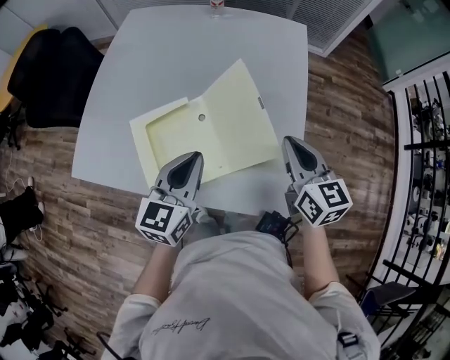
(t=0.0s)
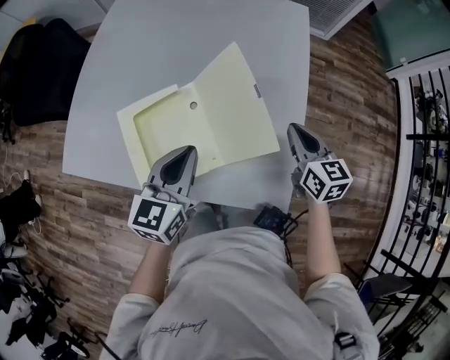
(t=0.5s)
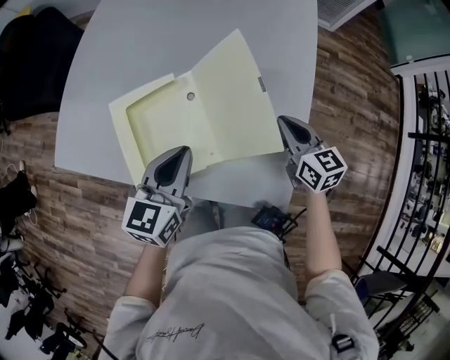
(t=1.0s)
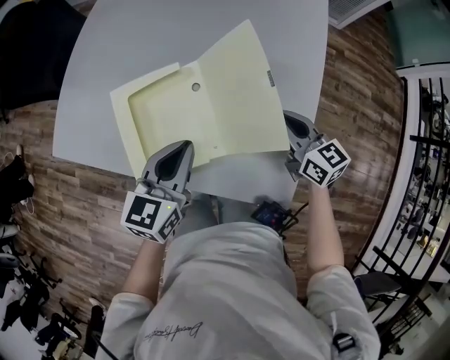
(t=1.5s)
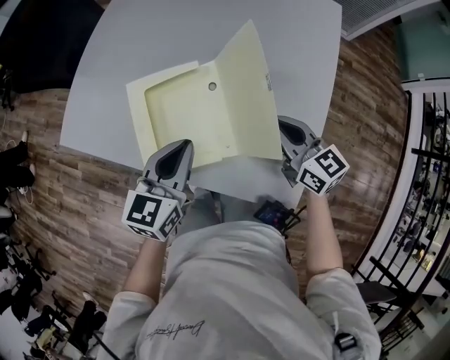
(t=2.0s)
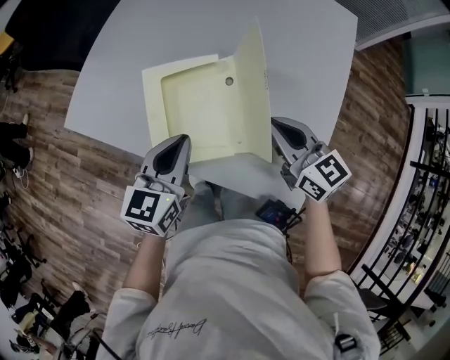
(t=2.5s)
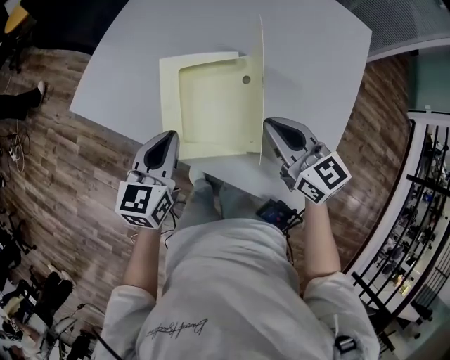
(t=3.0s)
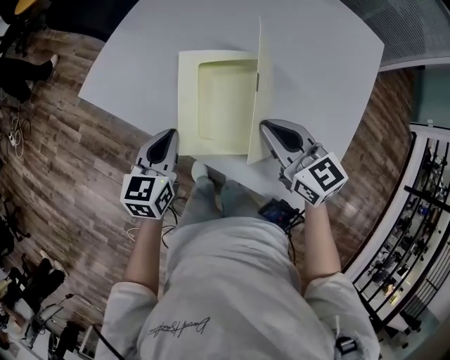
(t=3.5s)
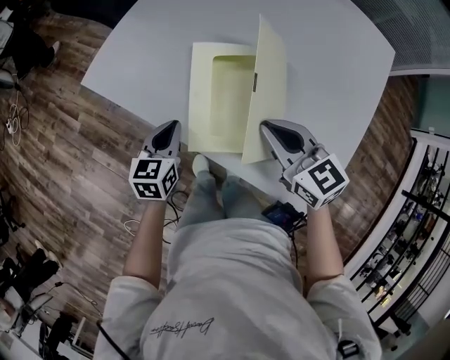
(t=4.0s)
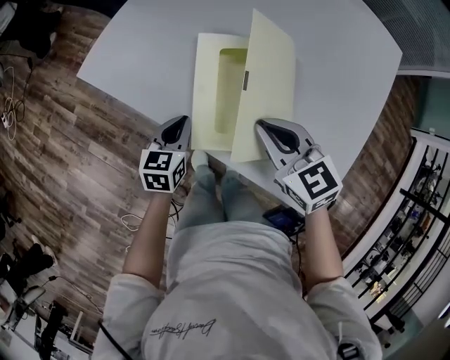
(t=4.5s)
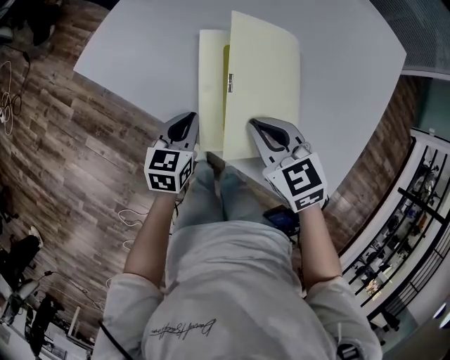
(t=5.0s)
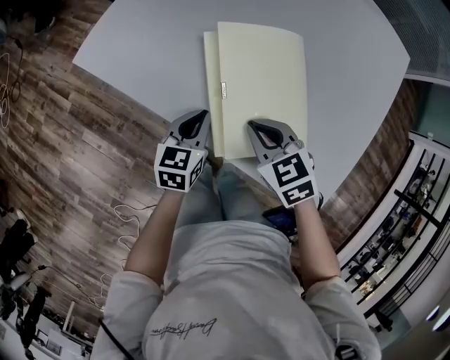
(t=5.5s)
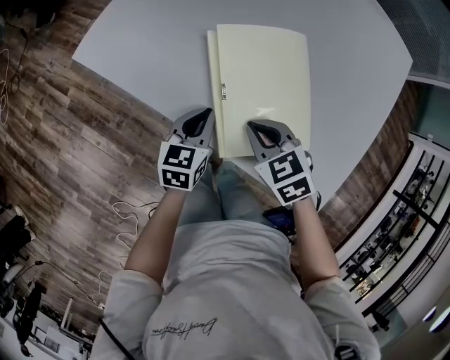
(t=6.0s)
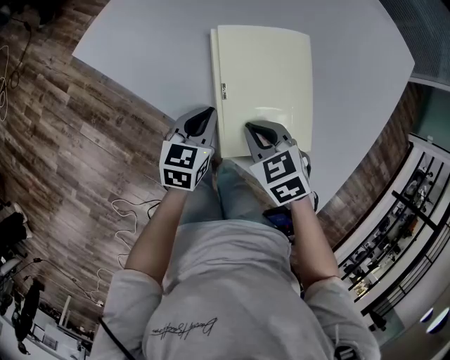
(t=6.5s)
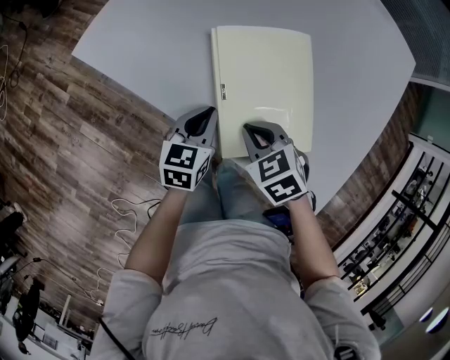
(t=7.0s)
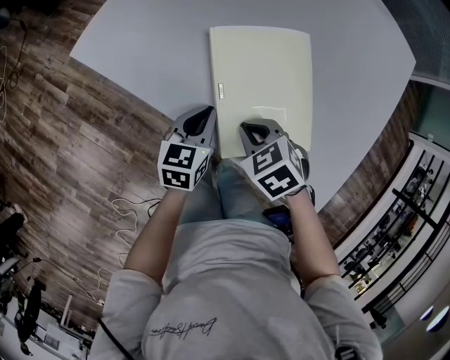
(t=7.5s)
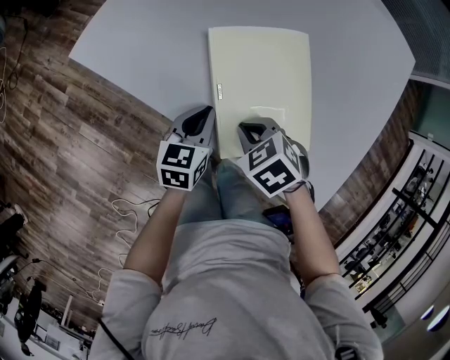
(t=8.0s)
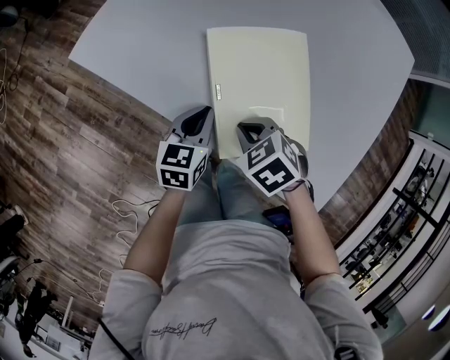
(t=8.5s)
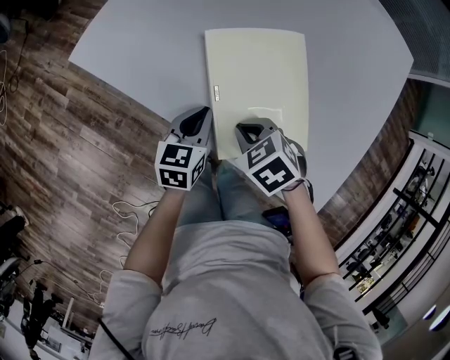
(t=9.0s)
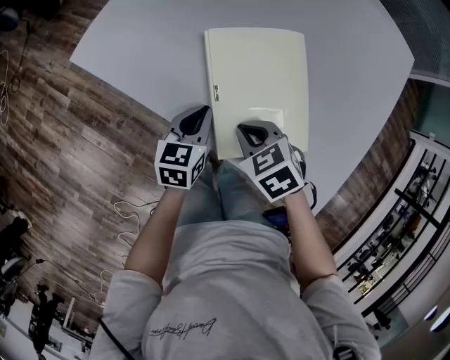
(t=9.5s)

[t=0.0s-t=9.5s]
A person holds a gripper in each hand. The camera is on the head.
t=0.0s to t=2.0s: The right gripper goes some 10 cm downward and to the left, and turns by approximately 30 degrees. The left gripper is displaced downward by some 5 cm.
t=2.0s to t=4.0s: The left gripper shifts approximately 20 cm to the left and downward, and swivels approximately 20 degrees; the right gripper heads to the left, covering some 15 cm, and turns by approximately 20 degrees.
t=4.0s to t=5.5s: The right gripper moves downward, some 10 cm, and rotates some 30 degrees, while the left gripper moves to the right, some 5 cm.
t=5.5s to t=7.5s: The right gripper ends up roughly 5 cm from where it was.
t=7.5s to t=9.5s: The grippers make only small movements.

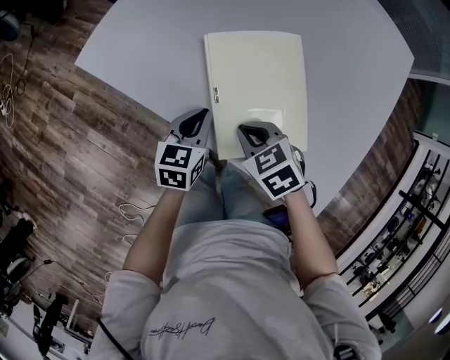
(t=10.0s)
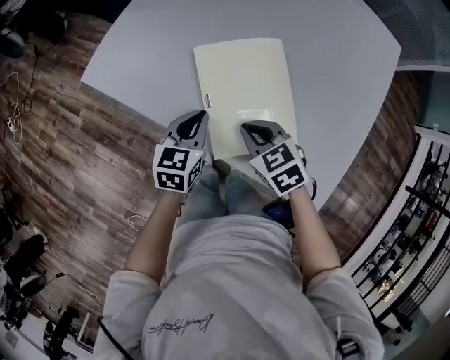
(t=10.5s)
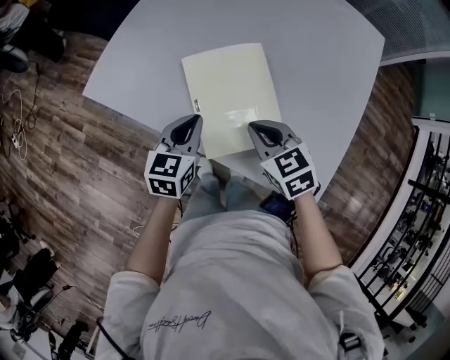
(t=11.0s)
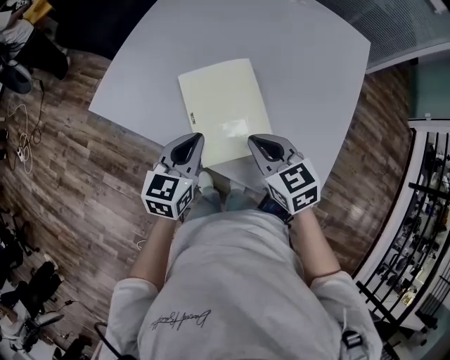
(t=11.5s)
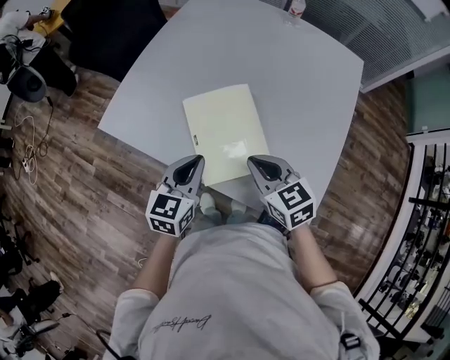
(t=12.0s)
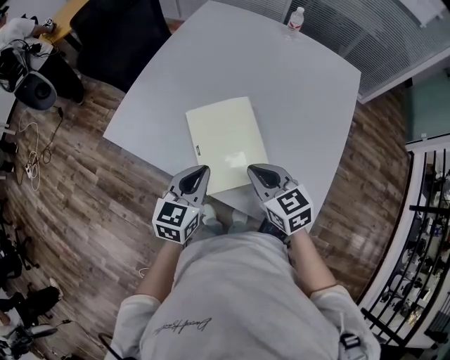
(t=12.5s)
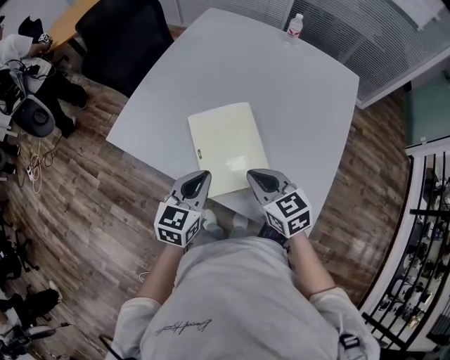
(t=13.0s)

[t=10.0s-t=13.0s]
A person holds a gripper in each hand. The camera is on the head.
t=10.0s to t=11.5s: The left gripper shifts about 15 cm upward; the right gripper shifts about 15 cm upward and to the right, and rotates approximately 30 degrees.
t=11.5s to t=13.0s: The grippers stay close to where they were, moving slightly.

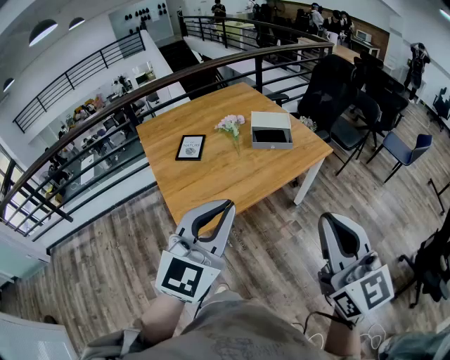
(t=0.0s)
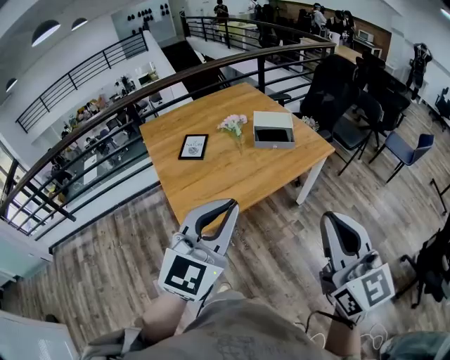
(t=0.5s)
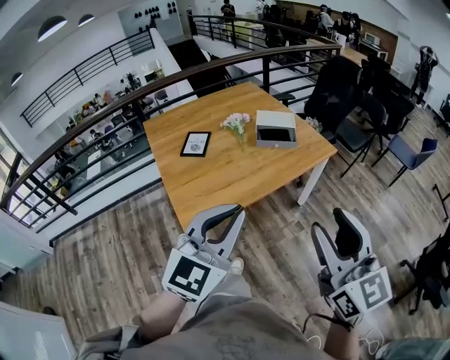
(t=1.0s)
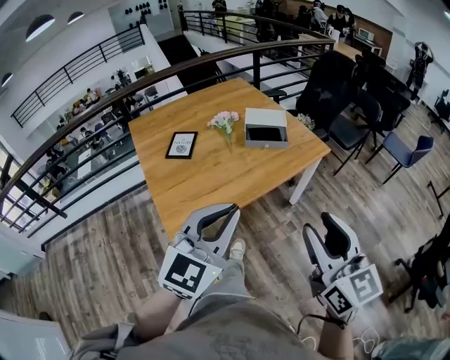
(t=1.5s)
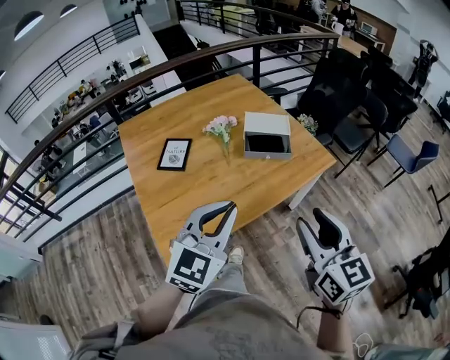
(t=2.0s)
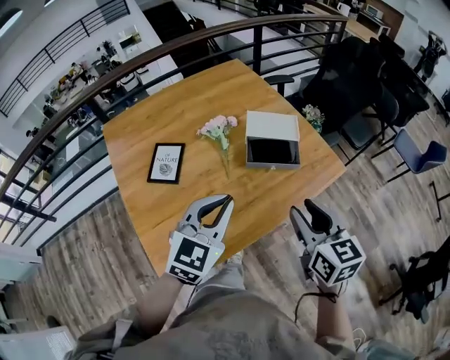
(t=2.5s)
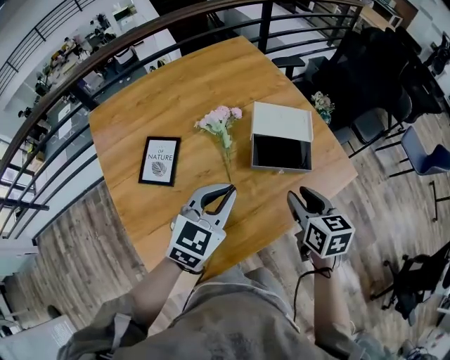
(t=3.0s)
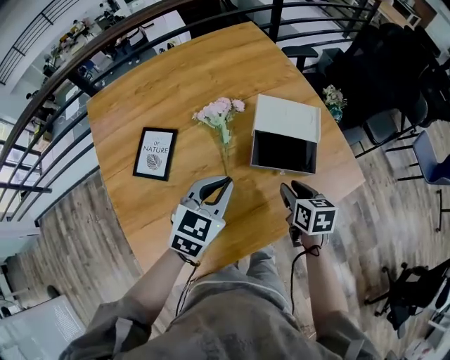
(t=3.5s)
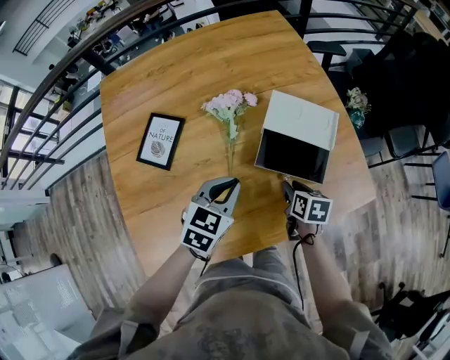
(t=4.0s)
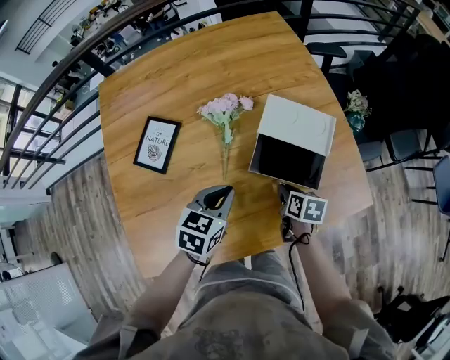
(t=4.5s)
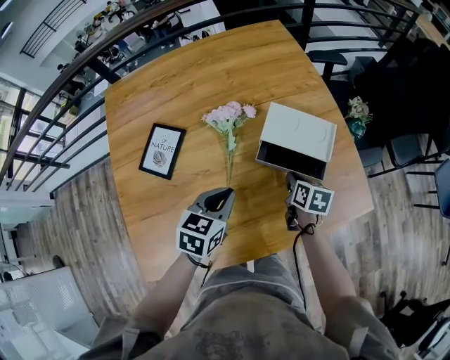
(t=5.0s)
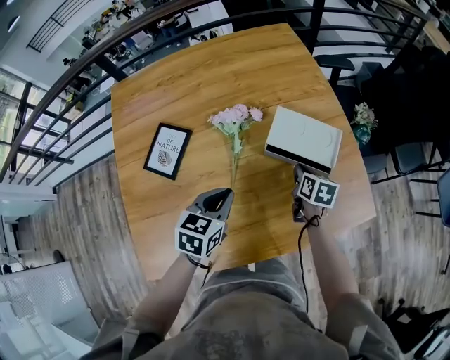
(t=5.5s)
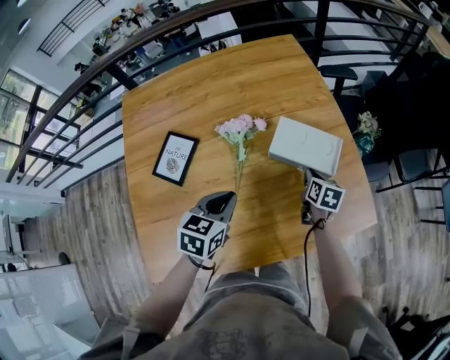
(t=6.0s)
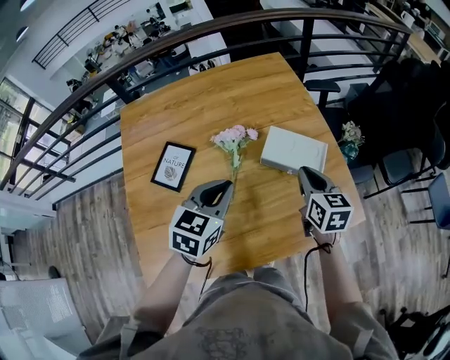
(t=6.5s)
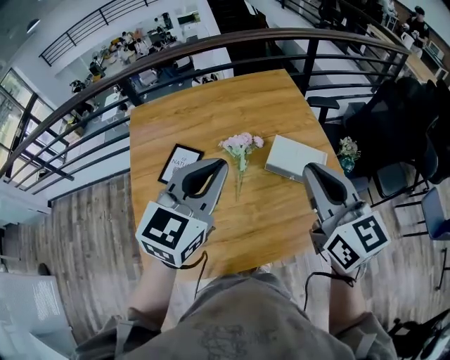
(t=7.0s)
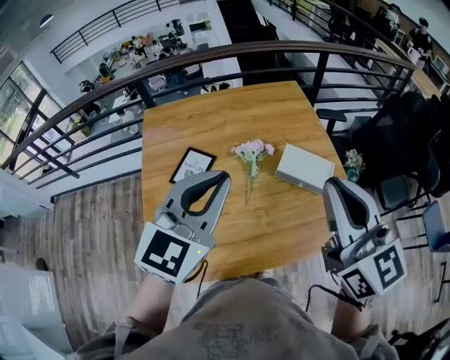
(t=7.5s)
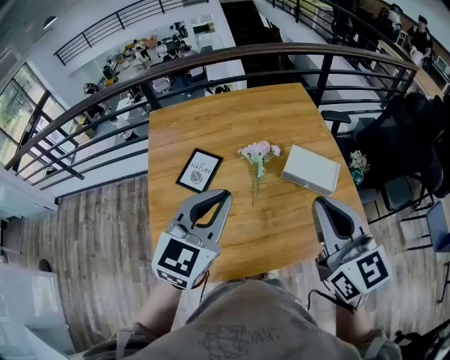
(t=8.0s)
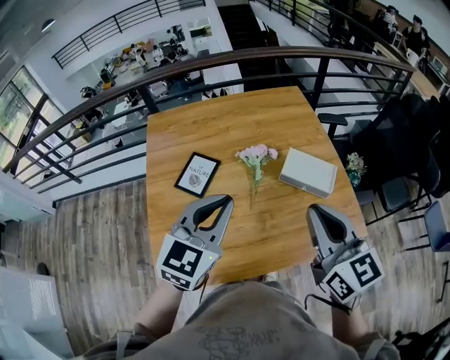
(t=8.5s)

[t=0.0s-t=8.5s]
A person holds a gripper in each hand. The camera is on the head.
t=0.0s to t=2.0s: The two grippers go roughly 20 cm forward and downward. The right gripper opens.
t=2.0s to t=4.0s: The right gripper goes some 50 cm downward and forward, and angles its fingers downward, by approximately 40 degrees, while the left gripper is displaced forward and downward by about 40 cm, and swivels approximately 40 degrees.
t=4.0s to t=6.5s: The right gripper moves upward and forward, some 20 cm, rotates about 30 degrees, and closes up; the left gripper goes about 10 cm upward.
t=6.5s to t=8.5s: The left gripper is displaced upward, backward and to the left by about 15 cm, while the right gripper heads upward, backward and to the left, covering approximately 25 cm, and swivels approximately 30 degrees.

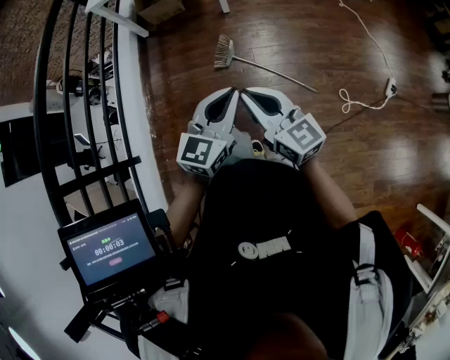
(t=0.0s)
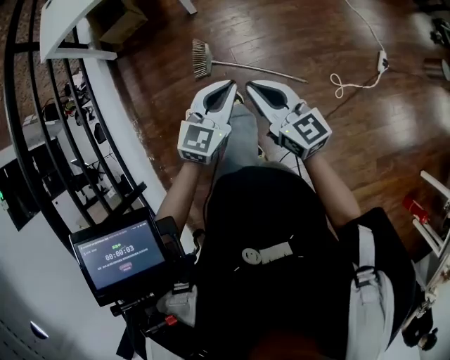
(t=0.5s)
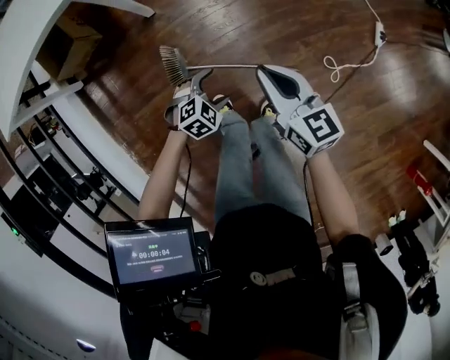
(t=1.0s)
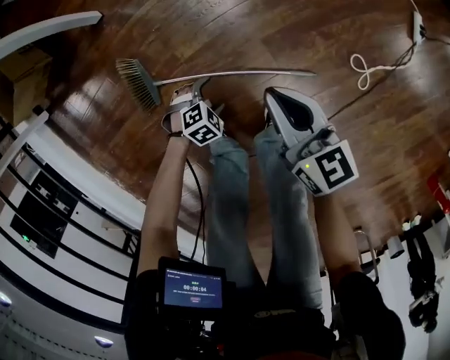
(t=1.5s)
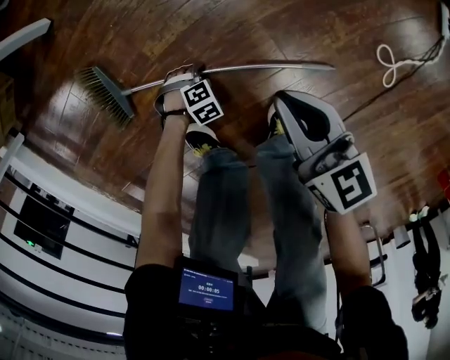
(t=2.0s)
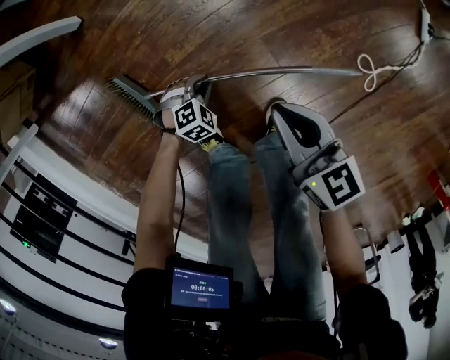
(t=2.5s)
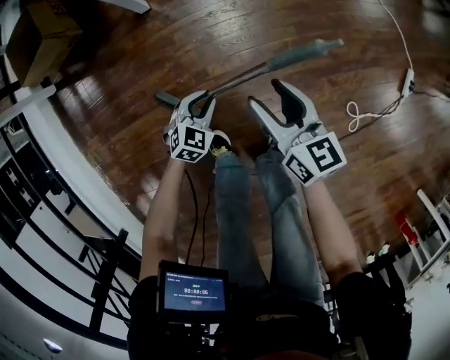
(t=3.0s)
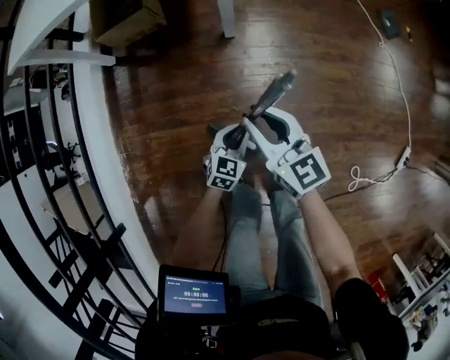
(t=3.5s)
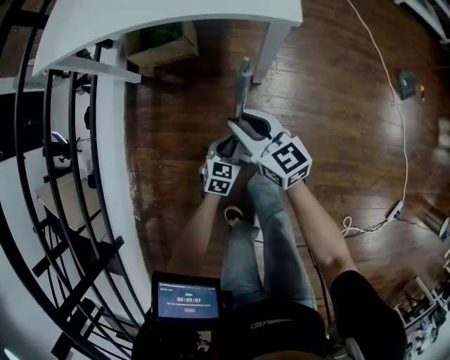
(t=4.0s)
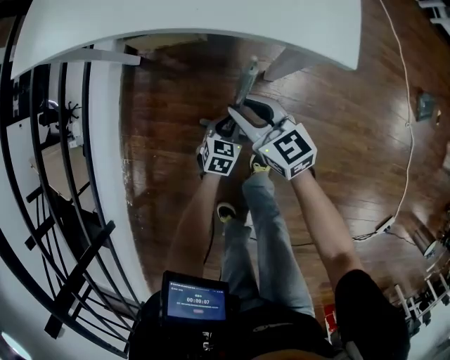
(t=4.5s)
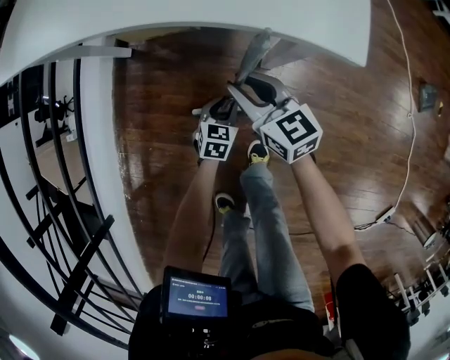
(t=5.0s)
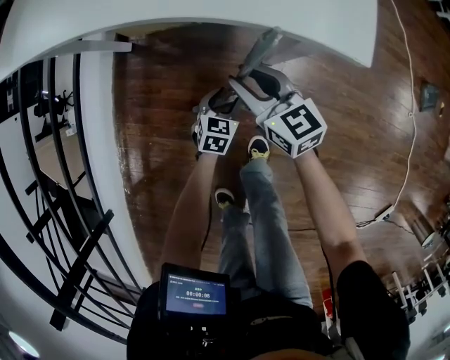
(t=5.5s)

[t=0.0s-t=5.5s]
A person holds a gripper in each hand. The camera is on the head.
t=0.0s to t=2.0s: The right gripper goes some 60 cm downward, and swivels approximately 40 degrees; the left gripper goes some 1 m downward, points its fingers roughly 70 degrees further downward, and opens up.
t=2.0s to t=3.5s: The left gripper is displaced upward by approximately 50 cm, tilts its fingers about 40 degrees upward, and closes up, while the right gripper shifts by about 50 cm, swivels about 40 degrees, and opens, then closes once more.
t=3.5s to t=5.5s: Both grippers travel together forward, about 35 cm. The left gripper rotates approximately 20 degrees. The right gripper swivels about 20 degrees.
